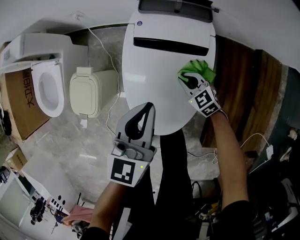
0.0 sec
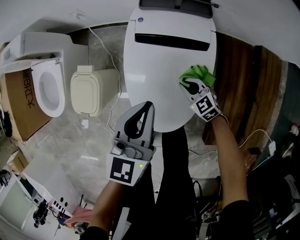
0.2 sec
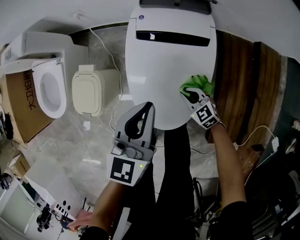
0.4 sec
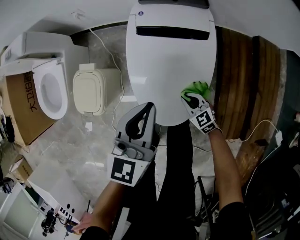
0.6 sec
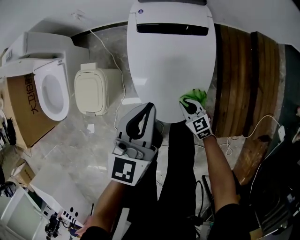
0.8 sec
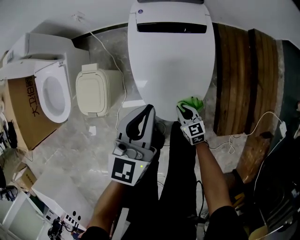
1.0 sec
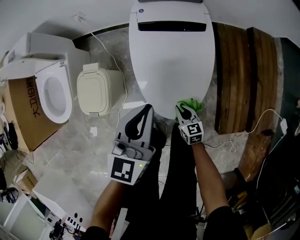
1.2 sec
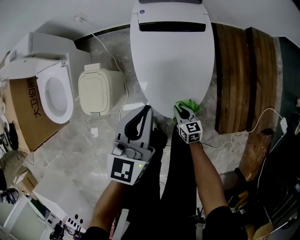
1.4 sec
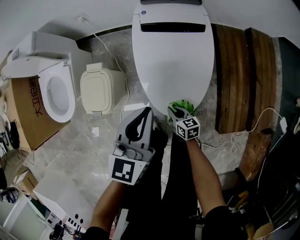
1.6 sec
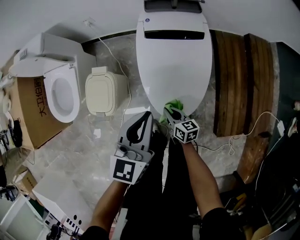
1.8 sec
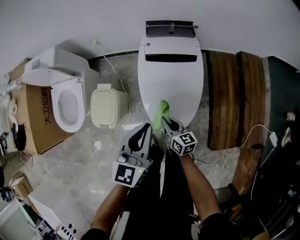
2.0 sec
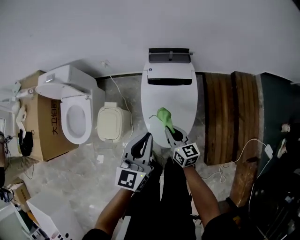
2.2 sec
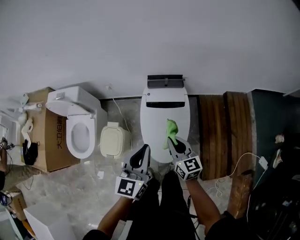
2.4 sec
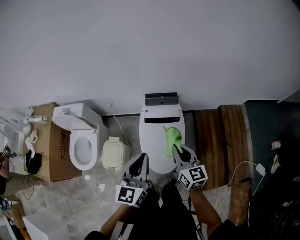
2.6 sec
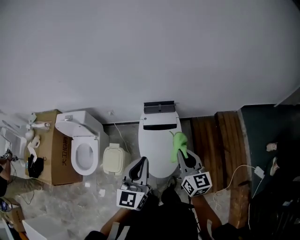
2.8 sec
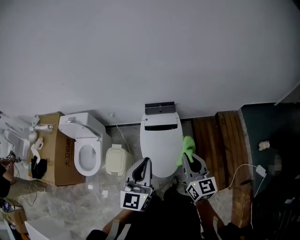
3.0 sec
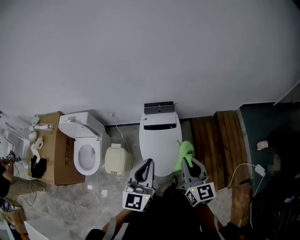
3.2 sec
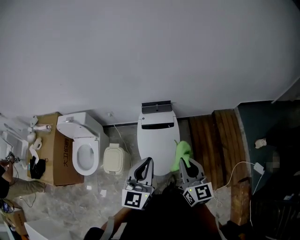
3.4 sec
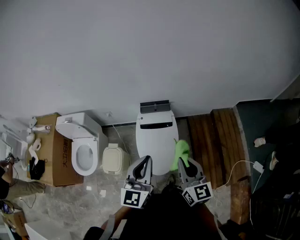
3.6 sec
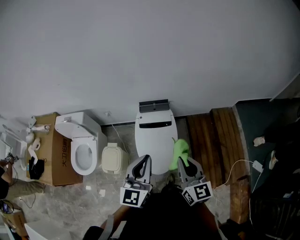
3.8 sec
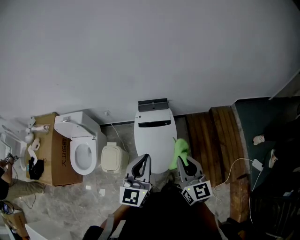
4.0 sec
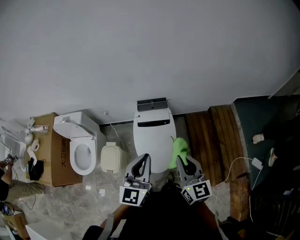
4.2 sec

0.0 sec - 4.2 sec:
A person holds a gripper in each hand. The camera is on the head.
0.0 sec - 1.4 sec: The left gripper goes about 15 cm backward and to the left. Meanwhile the right gripper travels backward and to the left by about 25 cm, and rolls clockwise, seen from behind, by roughly 40 degrees.
1.4 sec - 2.8 sec: The left gripper goes approximately 40 cm upward; the right gripper moves upward, approximately 60 cm, and points its fingers some 30 degrees further upward.
2.8 sec - 4.2 sec: The left gripper shifts by about 5 cm, while the right gripper travels backward and upward by roughly 10 cm.

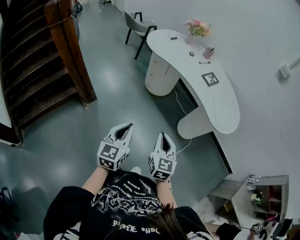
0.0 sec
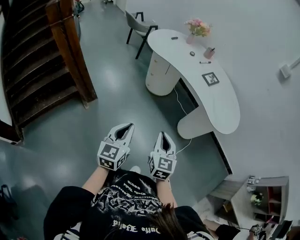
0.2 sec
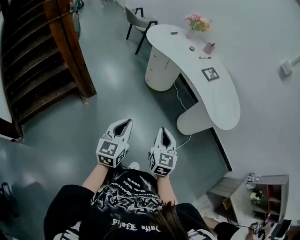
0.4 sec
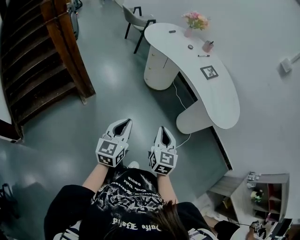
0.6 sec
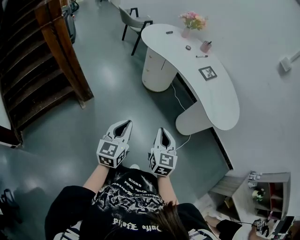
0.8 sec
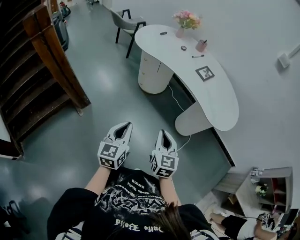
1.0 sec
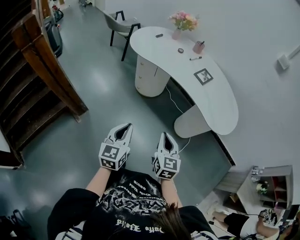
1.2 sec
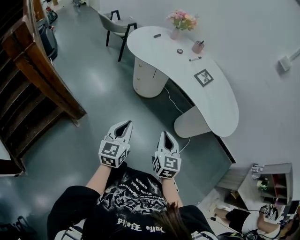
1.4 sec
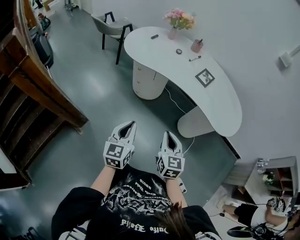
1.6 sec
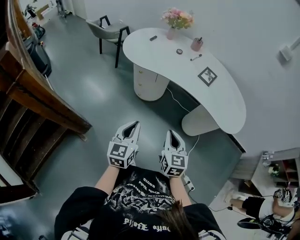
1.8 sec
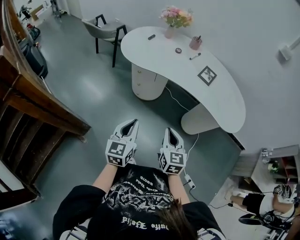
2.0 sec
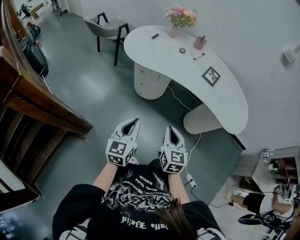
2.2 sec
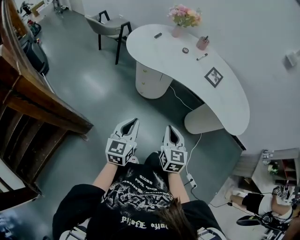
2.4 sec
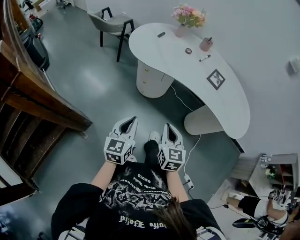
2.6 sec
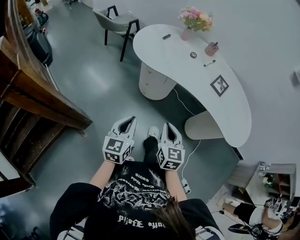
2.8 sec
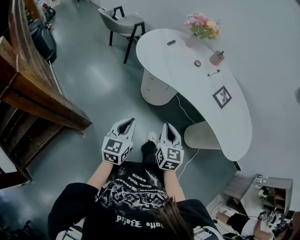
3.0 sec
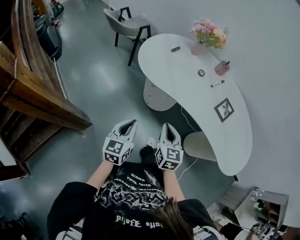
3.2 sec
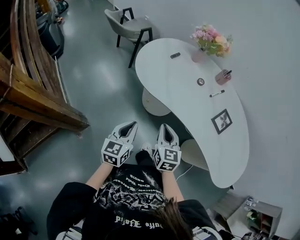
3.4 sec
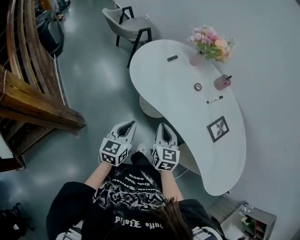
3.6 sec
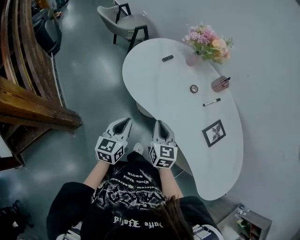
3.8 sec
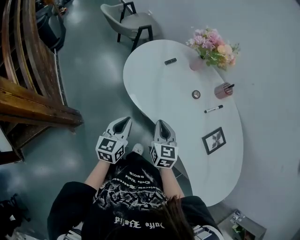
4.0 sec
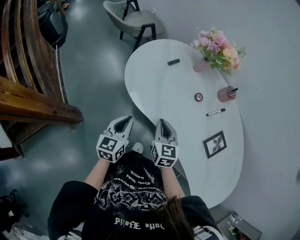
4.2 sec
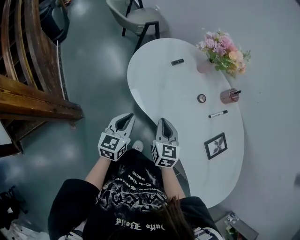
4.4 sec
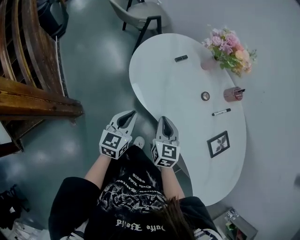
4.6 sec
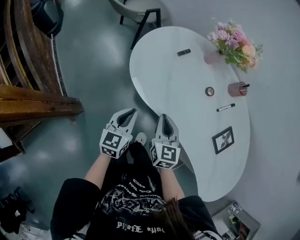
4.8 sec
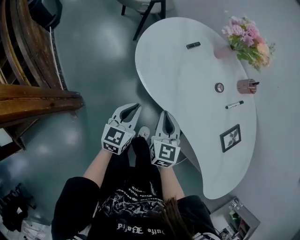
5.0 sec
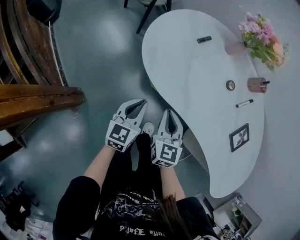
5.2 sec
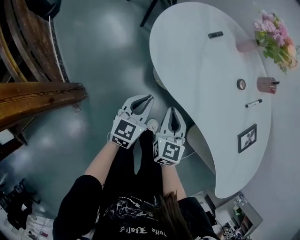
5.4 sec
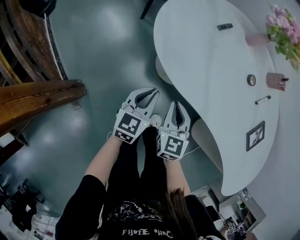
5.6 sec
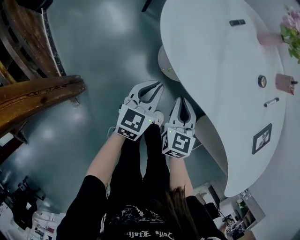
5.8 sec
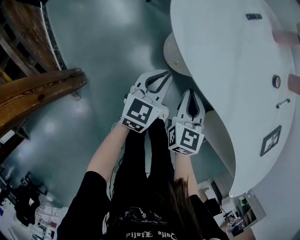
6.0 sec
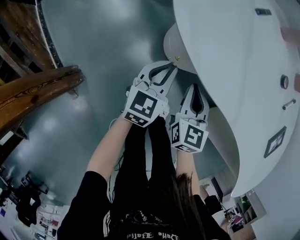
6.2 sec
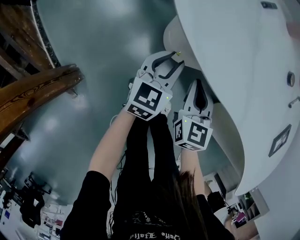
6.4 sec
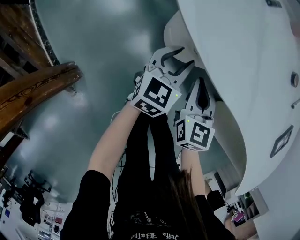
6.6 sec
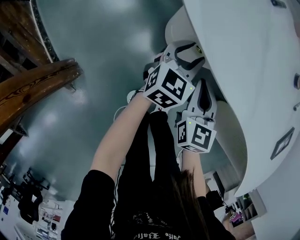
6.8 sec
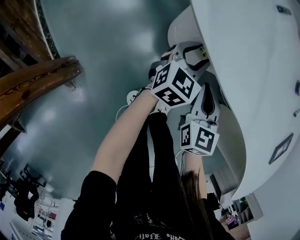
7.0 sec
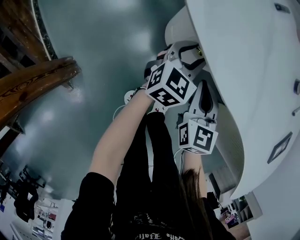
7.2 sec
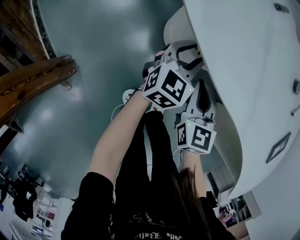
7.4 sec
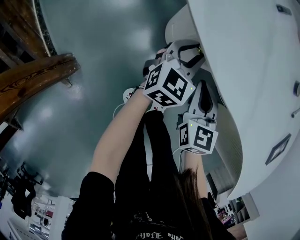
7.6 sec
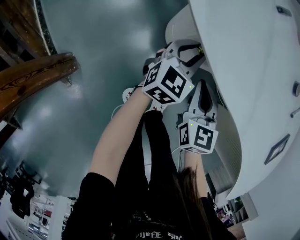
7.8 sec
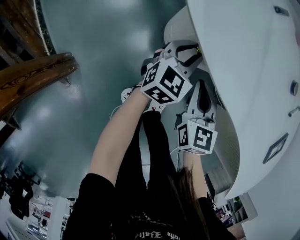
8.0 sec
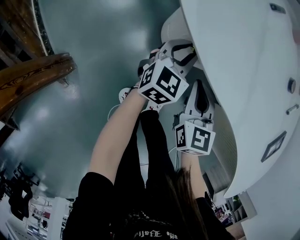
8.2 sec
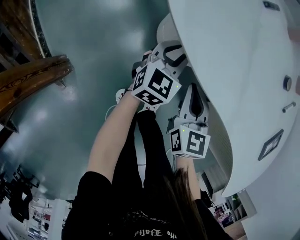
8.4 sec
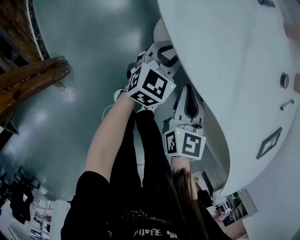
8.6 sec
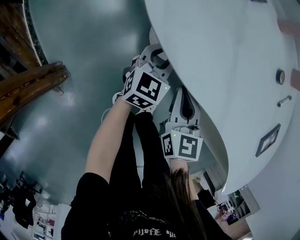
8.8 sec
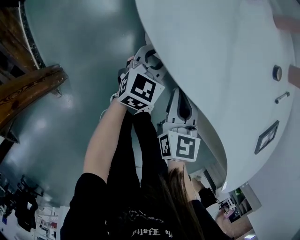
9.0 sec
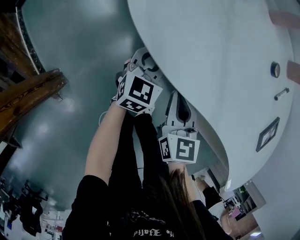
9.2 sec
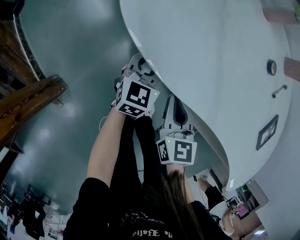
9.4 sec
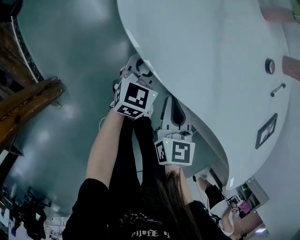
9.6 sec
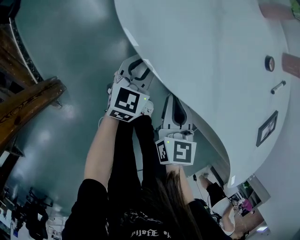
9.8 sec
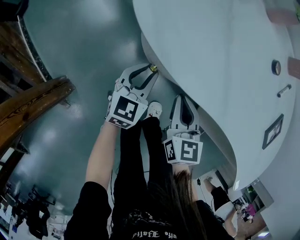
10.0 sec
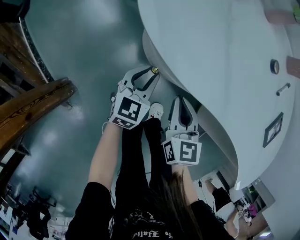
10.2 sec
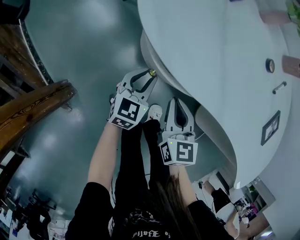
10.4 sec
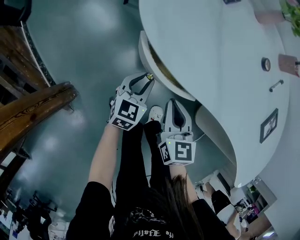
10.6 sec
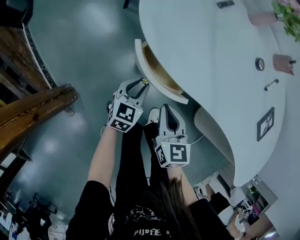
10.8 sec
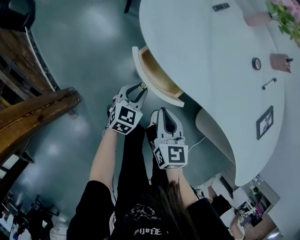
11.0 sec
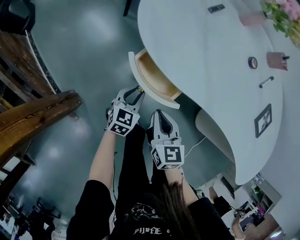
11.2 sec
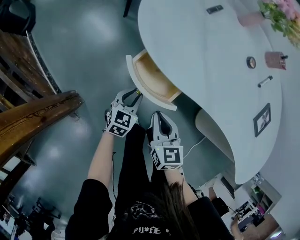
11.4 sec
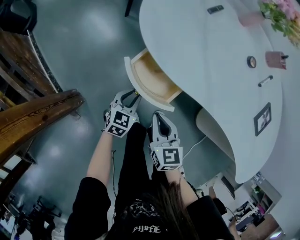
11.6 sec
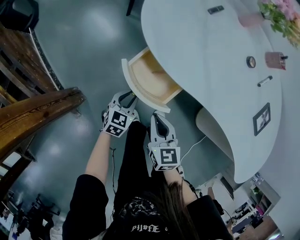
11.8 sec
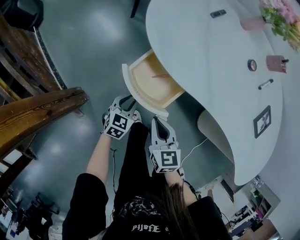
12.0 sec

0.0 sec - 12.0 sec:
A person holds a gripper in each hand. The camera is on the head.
0.0 sec - 1.6 sec: The grippers both shift forward by some 20 cm.
1.6 sec - 3.0 sec: Both grippers move forward and to the left, about 20 cm.
3.0 sec - 4.4 sec: Both grippers travel together forward, approximately 30 cm.
4.4 sec - 6.0 sec: The right gripper moves downward and to the left, approximately 25 cm. Meanwhile the left gripper heads downward, covering roughly 25 cm.
6.0 sec - 7.6 sec: The right gripper is displaced downward by approximately 5 cm. The left gripper heads forward, downward and to the right, covering approximately 15 cm, and opens.
7.6 sec - 9.0 sec: There are only small adjustments of the grippers.
9.0 sec - 10.4 sec: The left gripper goes about 5 cm backward.
10.4 sec - 12.0 sec: The grippers both shift backward and to the left by about 10 cm.

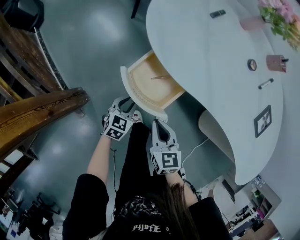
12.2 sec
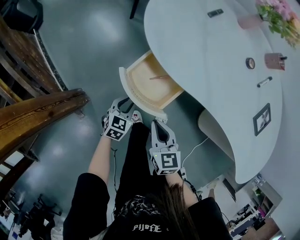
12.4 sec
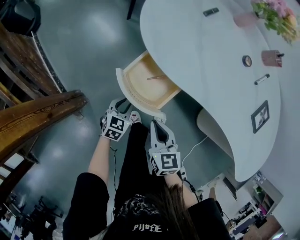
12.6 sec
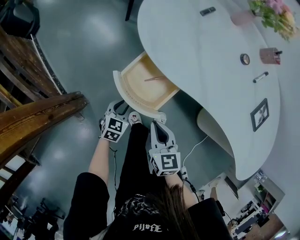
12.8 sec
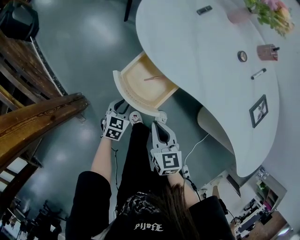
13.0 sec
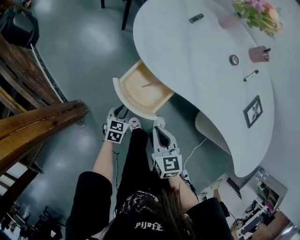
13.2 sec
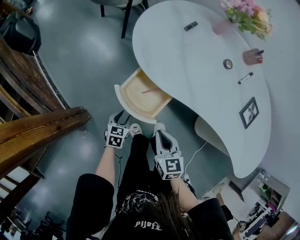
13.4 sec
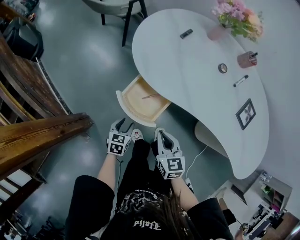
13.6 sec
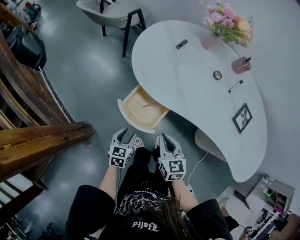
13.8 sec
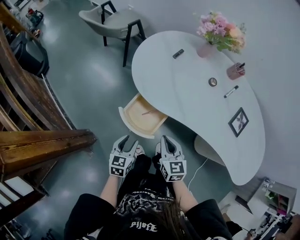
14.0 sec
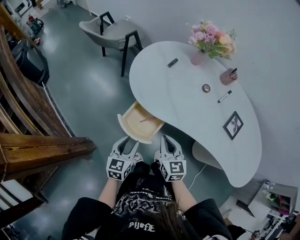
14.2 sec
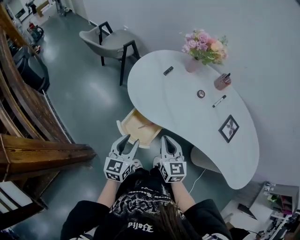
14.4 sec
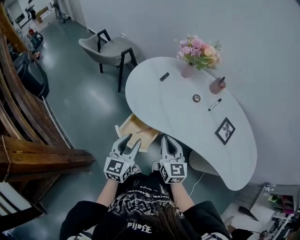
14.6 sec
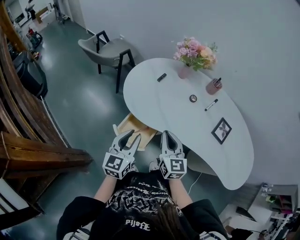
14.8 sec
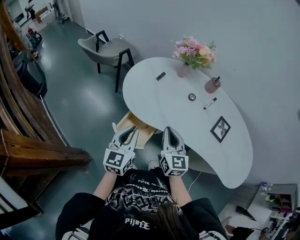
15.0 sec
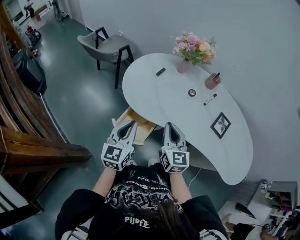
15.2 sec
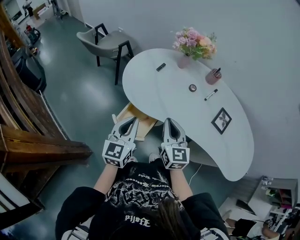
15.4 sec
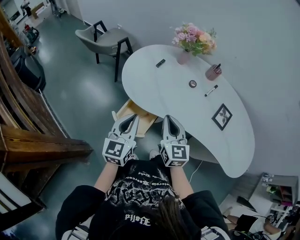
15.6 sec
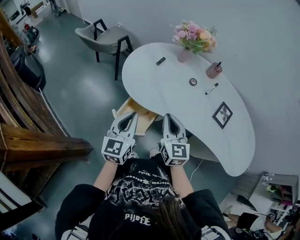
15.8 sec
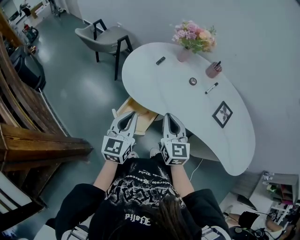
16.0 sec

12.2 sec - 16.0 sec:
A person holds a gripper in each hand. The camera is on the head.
12.2 sec - 13.4 sec: The right gripper moves upward, about 5 cm.
13.4 sec - 14.8 sec: The left gripper goes about 35 cm upward, and tips its fingers upward by some 40 degrees, while the right gripper moves upward and forward, about 25 cm, and swivels about 30 degrees.
14.8 sec - 16.0 sec: The left gripper closes up.

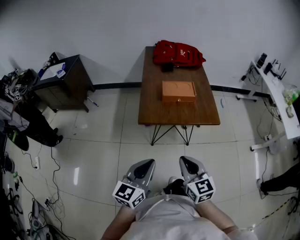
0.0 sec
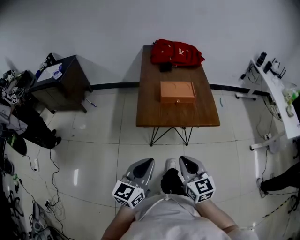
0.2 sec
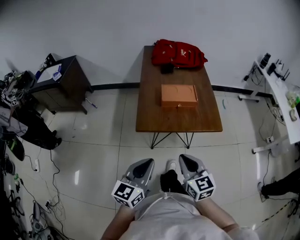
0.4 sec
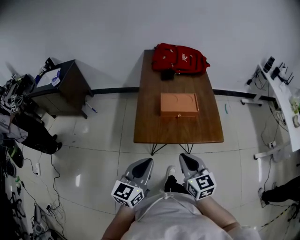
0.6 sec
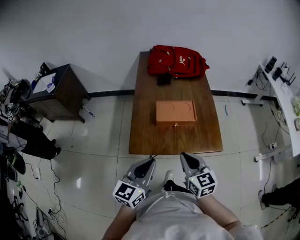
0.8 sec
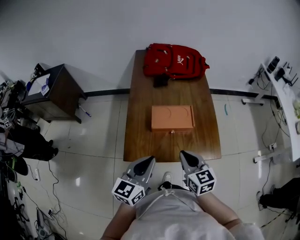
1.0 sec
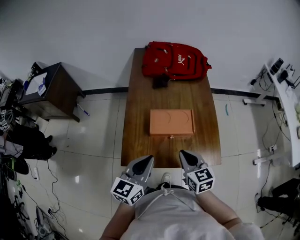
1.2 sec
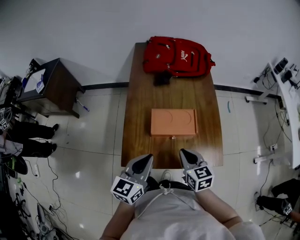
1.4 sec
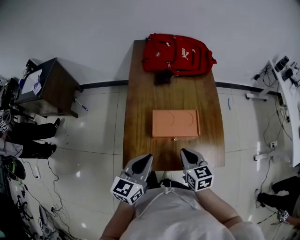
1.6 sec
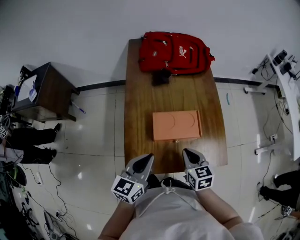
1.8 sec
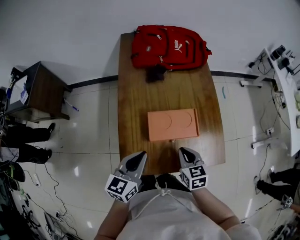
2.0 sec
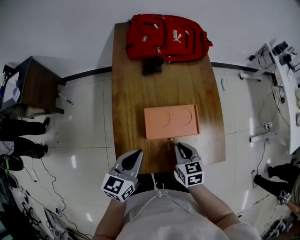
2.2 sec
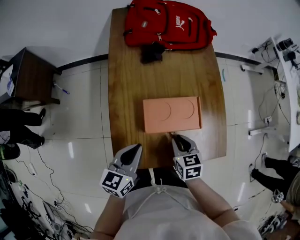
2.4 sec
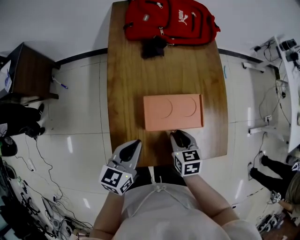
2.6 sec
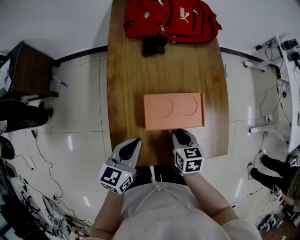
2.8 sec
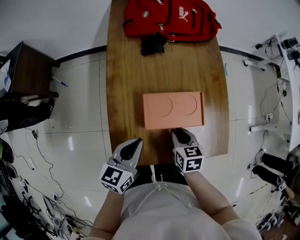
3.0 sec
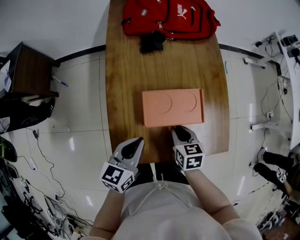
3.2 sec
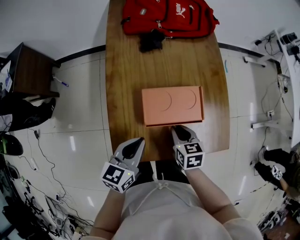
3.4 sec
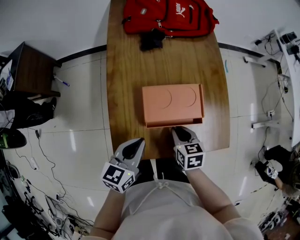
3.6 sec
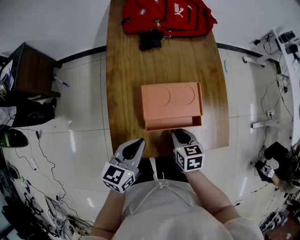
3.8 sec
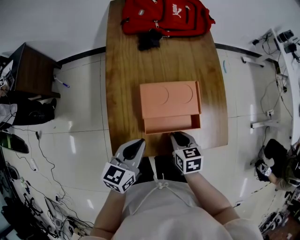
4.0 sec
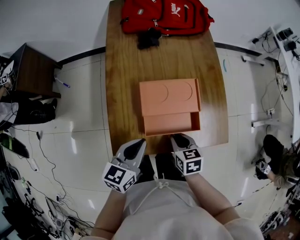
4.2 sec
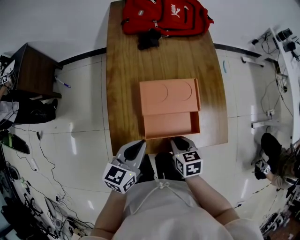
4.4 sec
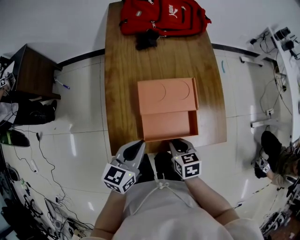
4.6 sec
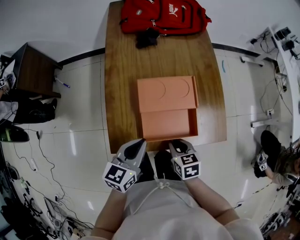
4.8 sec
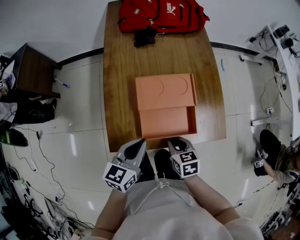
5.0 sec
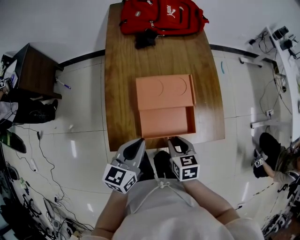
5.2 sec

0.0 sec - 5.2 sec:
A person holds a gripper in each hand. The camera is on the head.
0.0 sec - 1.8 sec: The two grippers travel together, forward, some 40 cm. The right gripper rotates some 20 degrees.
1.8 sec - 3.4 sec: The grippers both shift downward by about 10 cm.
3.4 sec - 5.2 sec: The left gripper goes about 5 cm backward; the right gripper moves backward, about 10 cm.
